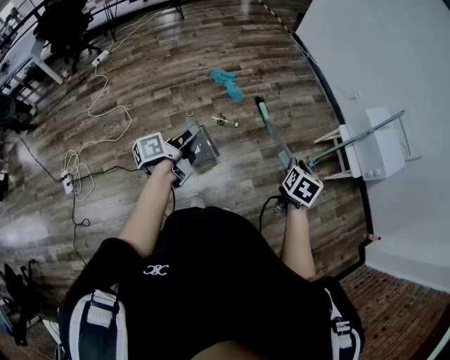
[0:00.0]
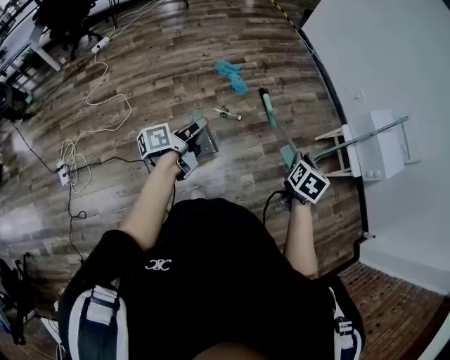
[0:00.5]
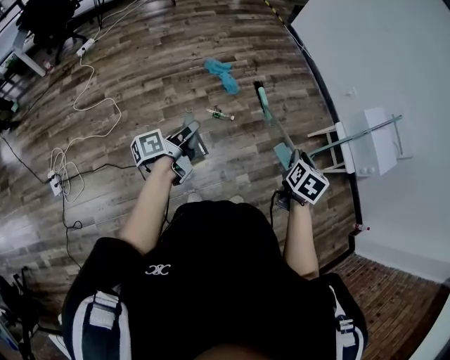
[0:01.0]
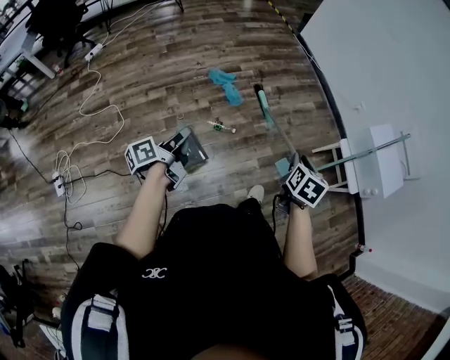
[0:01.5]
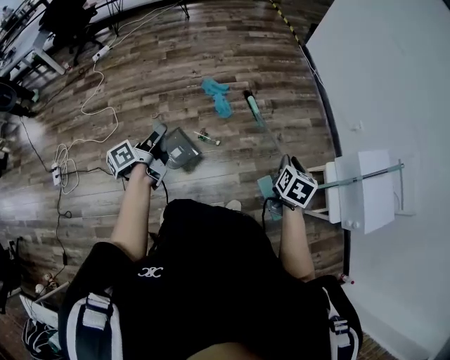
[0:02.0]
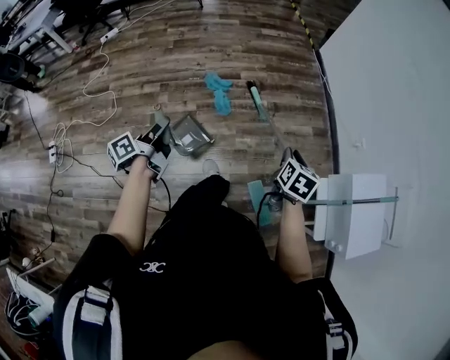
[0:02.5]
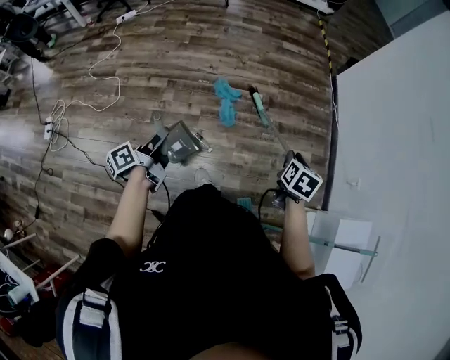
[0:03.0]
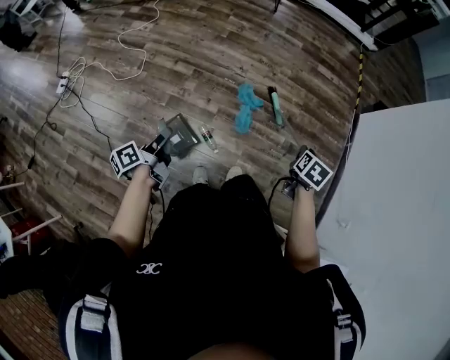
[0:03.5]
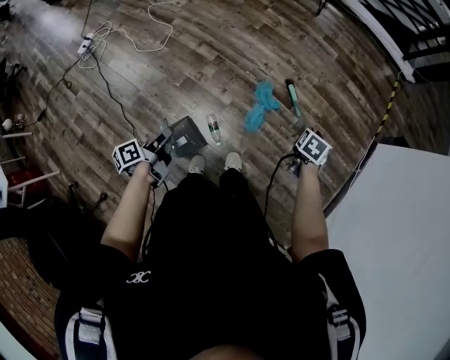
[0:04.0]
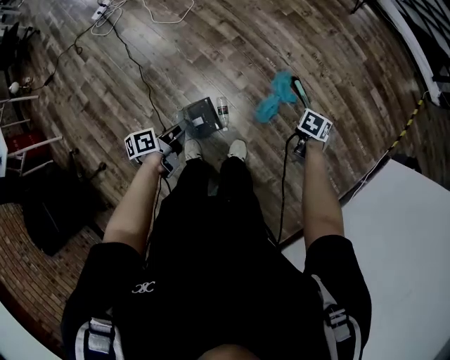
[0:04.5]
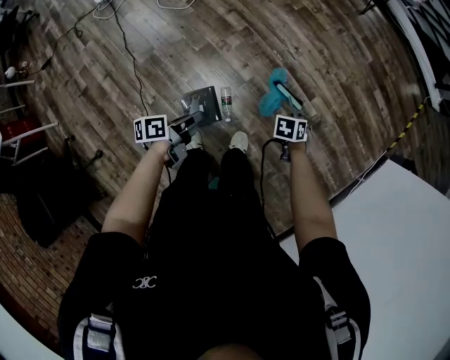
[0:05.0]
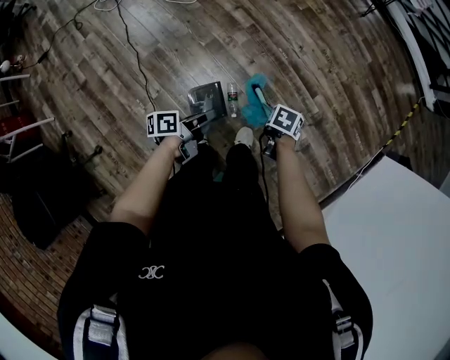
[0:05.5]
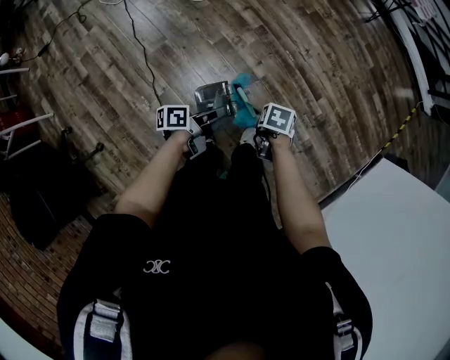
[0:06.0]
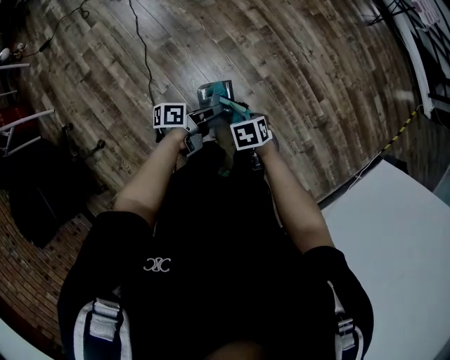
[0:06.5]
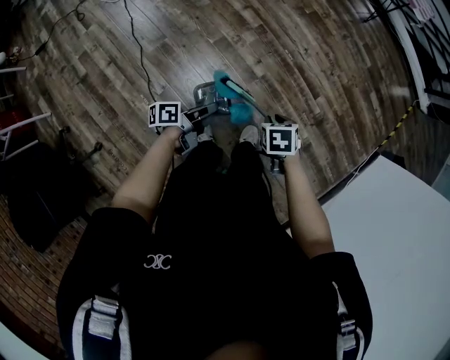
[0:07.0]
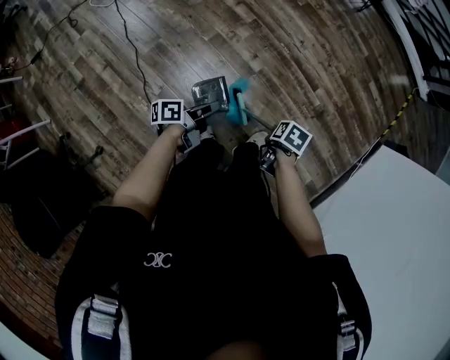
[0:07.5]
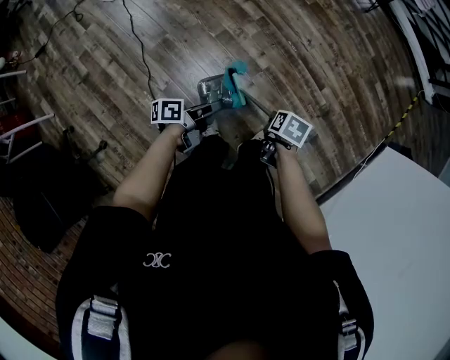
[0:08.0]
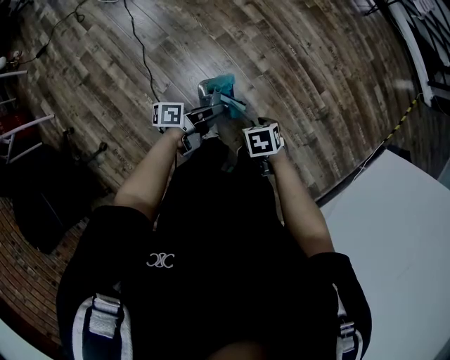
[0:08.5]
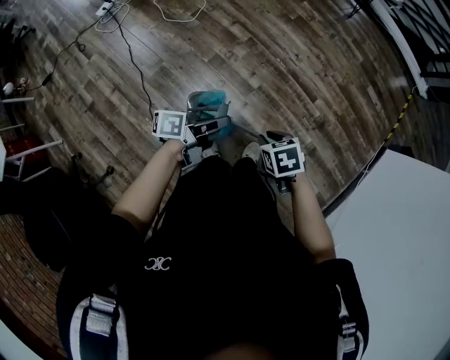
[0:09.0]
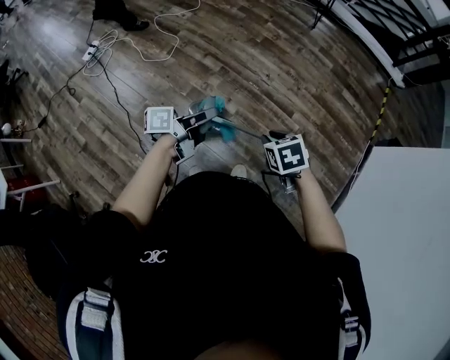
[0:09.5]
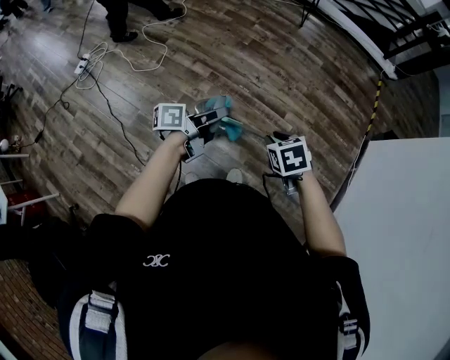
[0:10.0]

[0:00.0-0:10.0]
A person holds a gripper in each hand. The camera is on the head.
0:00.0 to 0:02.0: The right gripper moves approximately 30 cm.
0:02.0 to 0:04.0: The right gripper changes place by about 60 cm, and turns by approximately 40 degrees.
0:04.0 to 0:06.0: The right gripper shifts by roughly 35 cm, and changes its angle by about 40 degrees.
0:08.0 to 0:10.0: The right gripper travels upward by roughly 20 cm, and changes its angle by roughly 30 degrees.

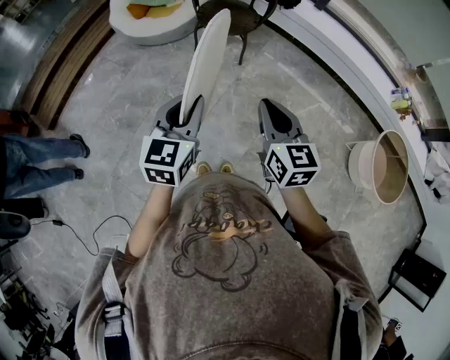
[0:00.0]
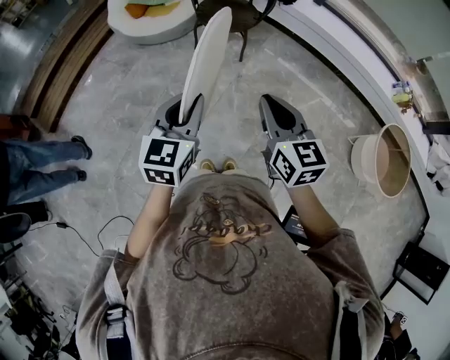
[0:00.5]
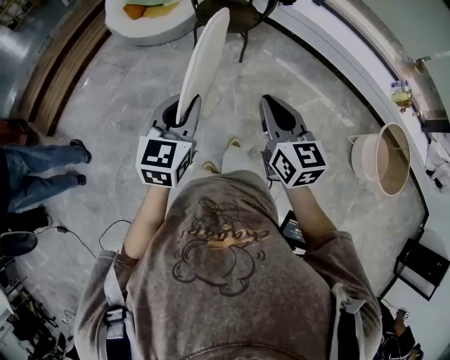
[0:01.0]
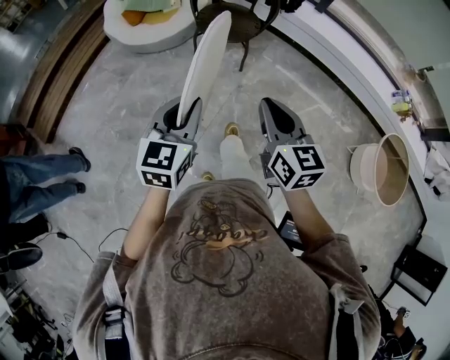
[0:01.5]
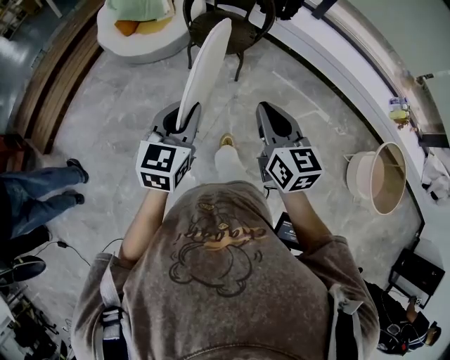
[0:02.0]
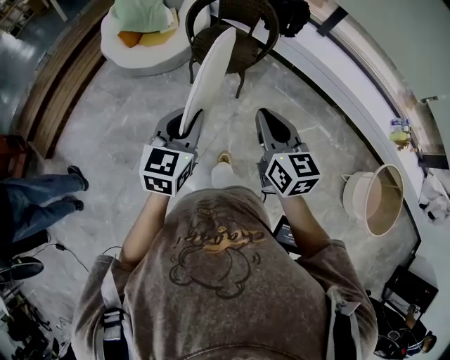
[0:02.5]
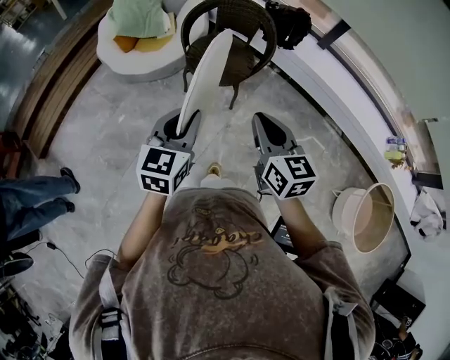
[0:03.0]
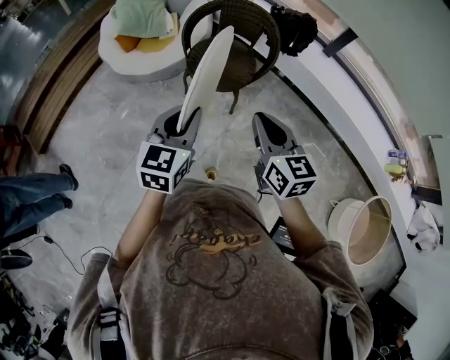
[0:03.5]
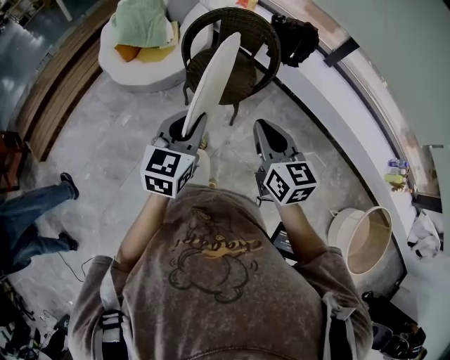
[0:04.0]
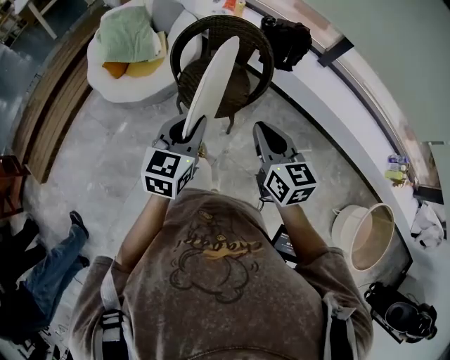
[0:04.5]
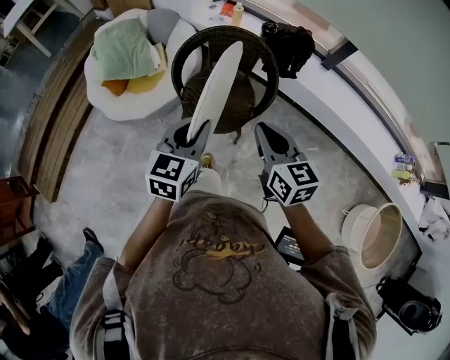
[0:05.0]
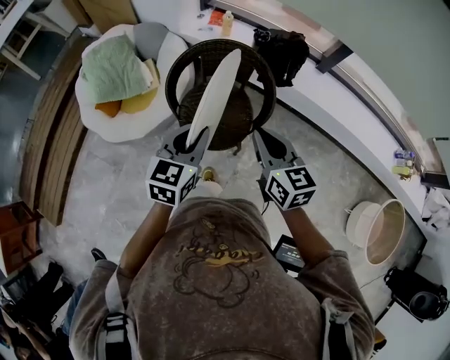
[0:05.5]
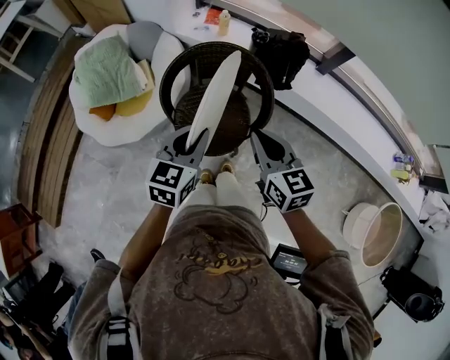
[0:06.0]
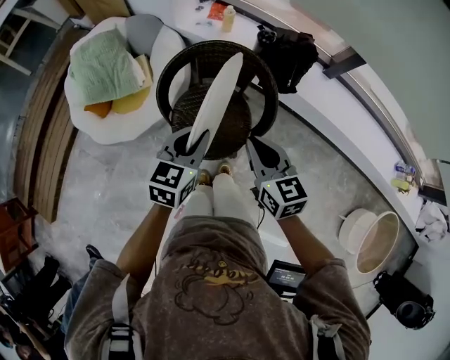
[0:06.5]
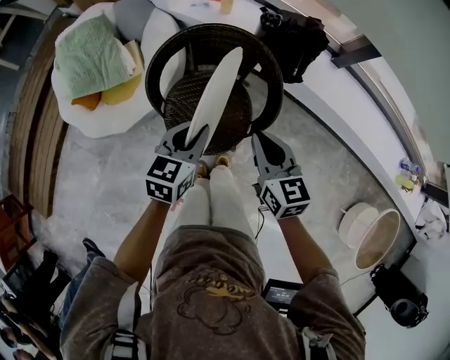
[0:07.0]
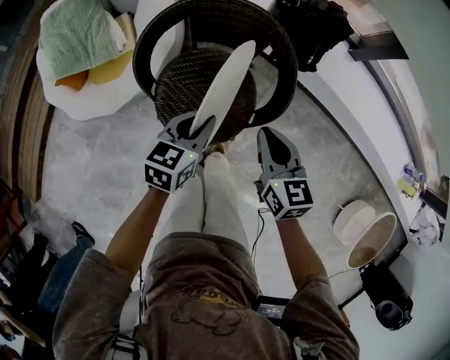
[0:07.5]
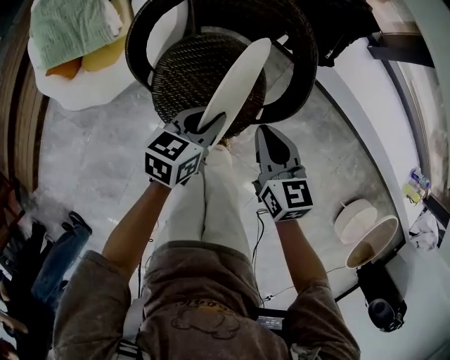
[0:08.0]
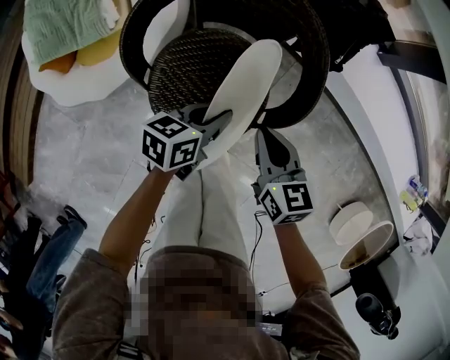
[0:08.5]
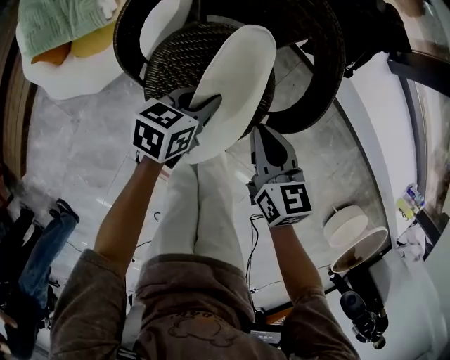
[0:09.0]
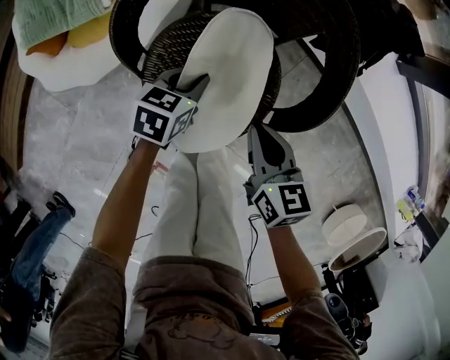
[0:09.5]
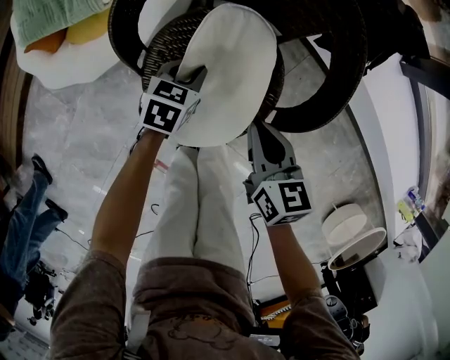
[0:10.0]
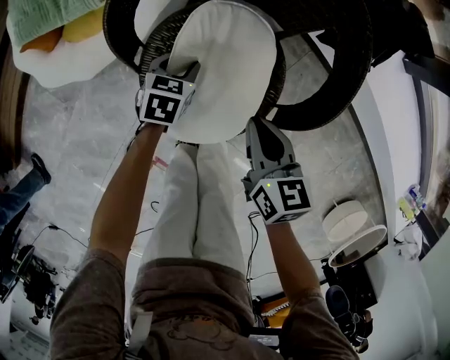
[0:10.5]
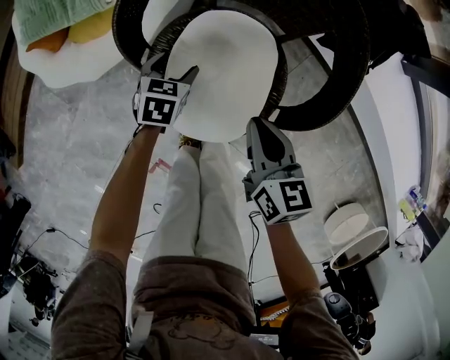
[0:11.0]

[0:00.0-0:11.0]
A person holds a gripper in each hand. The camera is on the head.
0:00.0 to 0:02.0: The two grippers go about 15 cm forward.
0:02.0 to 0:03.5: The grippers both shift forward by about 20 cm.
0:03.5 to 0:05.5: Both grippers travel together forward, about 30 cm.
0:05.5 to 0:07.5: The two grippers go about 25 cm downward and forward.
0:07.5 to 0:09.0: The two grippers go roughly 15 cm downward.
0:09.0 to 0:11.0: The left gripper heads downward and to the left, covering approximately 15 cm, swivels approximately 30 degrees, and opens its fingers.

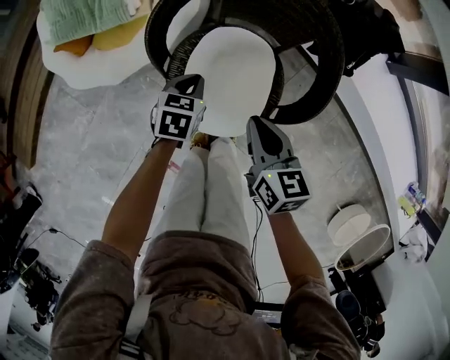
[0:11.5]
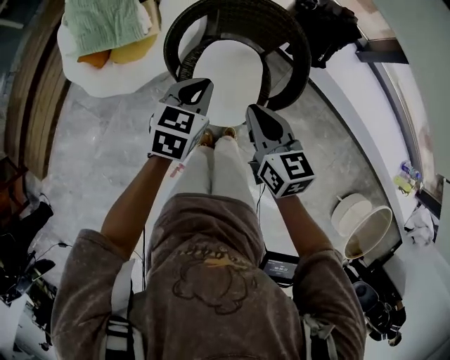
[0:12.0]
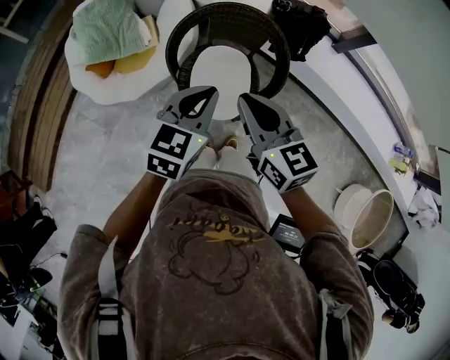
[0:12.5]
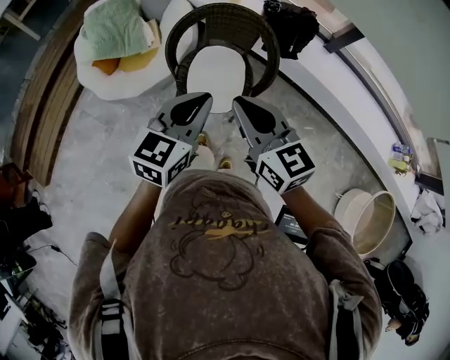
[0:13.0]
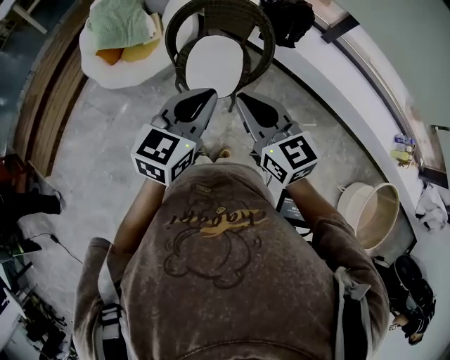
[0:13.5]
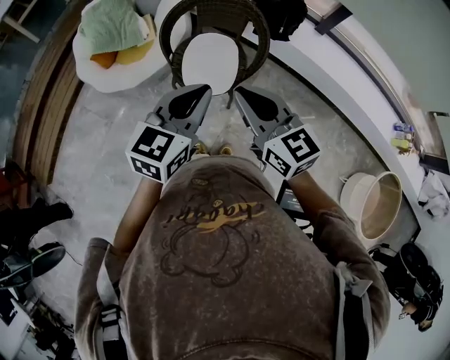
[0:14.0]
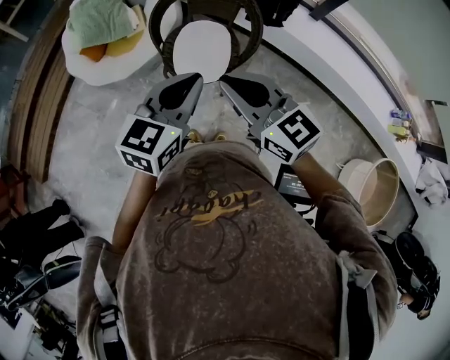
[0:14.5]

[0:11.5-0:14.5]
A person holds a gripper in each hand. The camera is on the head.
0:11.5 to 0:13.0: The grippers both shift upward and backward by roughly 50 cm. The left gripper angles its fingers upward, by about 40 degrees. The right gripper turns by about 30 degrees.
0:13.0 to 0:14.5: Both grippers travel together backward, roughly 10 cm.

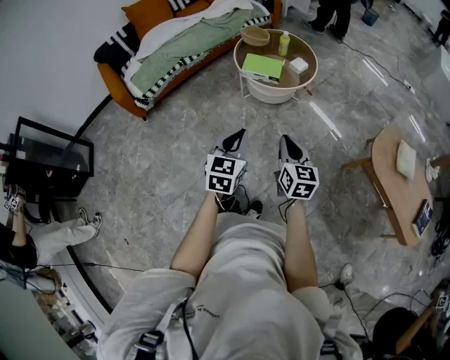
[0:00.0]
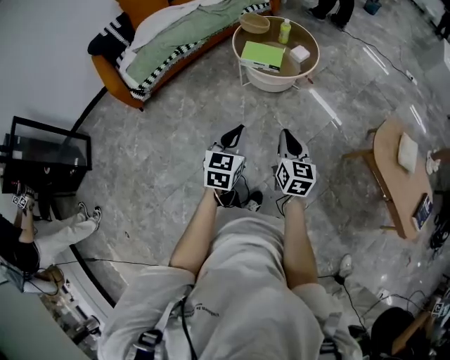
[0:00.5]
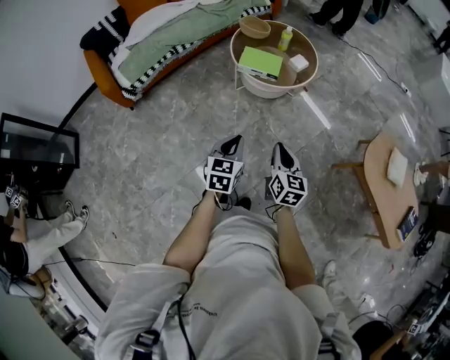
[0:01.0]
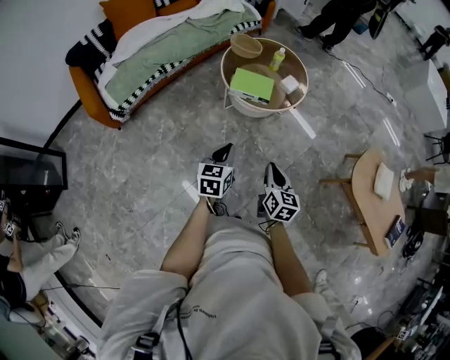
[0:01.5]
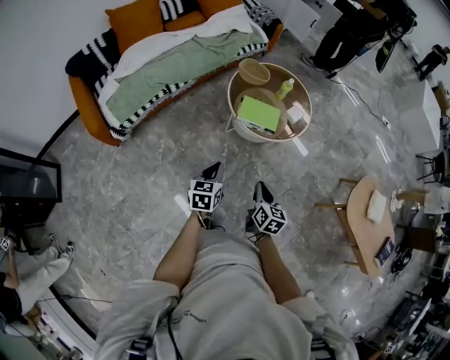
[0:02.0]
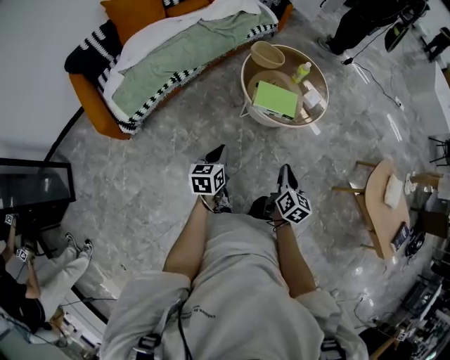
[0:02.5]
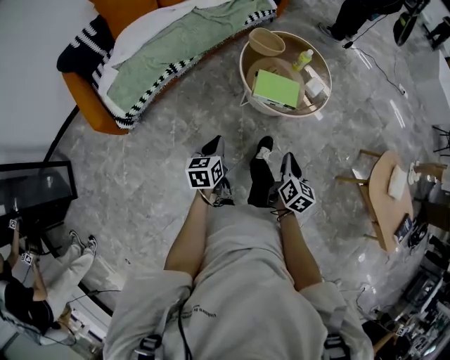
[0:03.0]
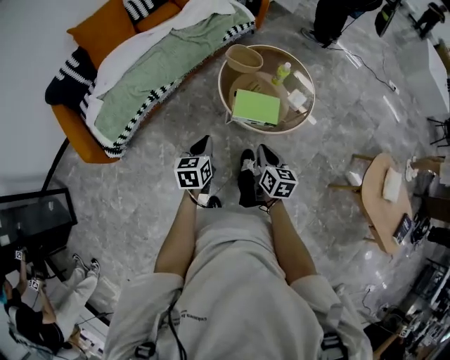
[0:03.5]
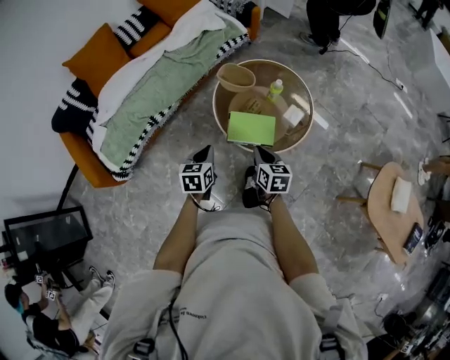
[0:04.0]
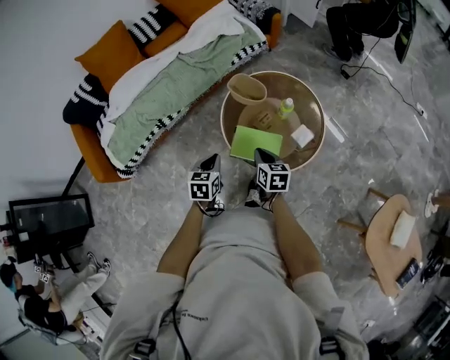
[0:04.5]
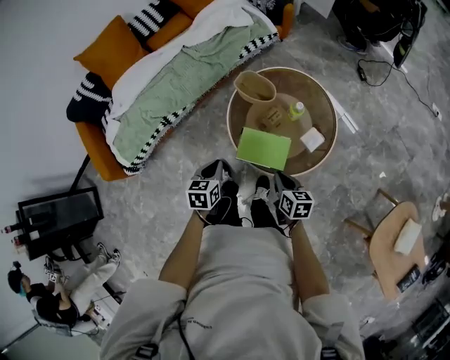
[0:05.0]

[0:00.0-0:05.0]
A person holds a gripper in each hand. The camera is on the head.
0:00.0 to 0:02.5: The left gripper goes approximately 40 cm forward, to the left and downward, and swivels approximately 30 degrees. Meanwhile the right gripper travels forward and to the left by about 25 cm, and rotates roughly 20 degrees.
0:02.5 to 0:05.0: The right gripper travels forward by roughly 30 cm, and rotates some 30 degrees; the left gripper moves forward and to the right, approximately 35 cm.
